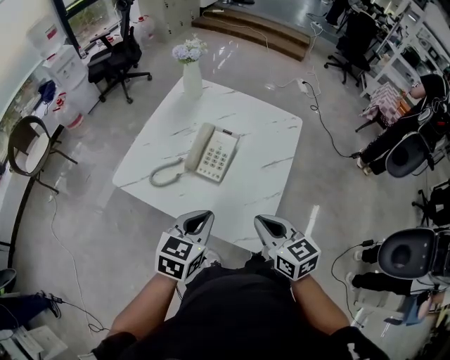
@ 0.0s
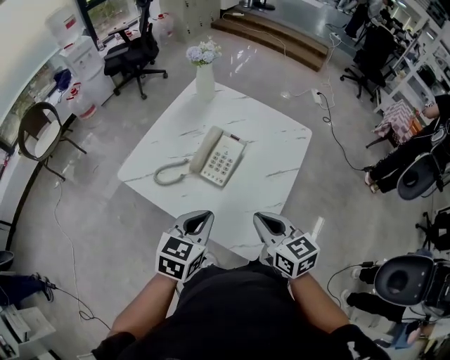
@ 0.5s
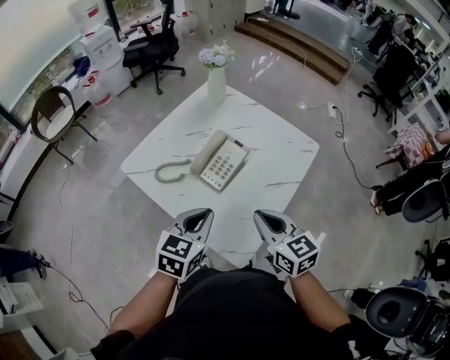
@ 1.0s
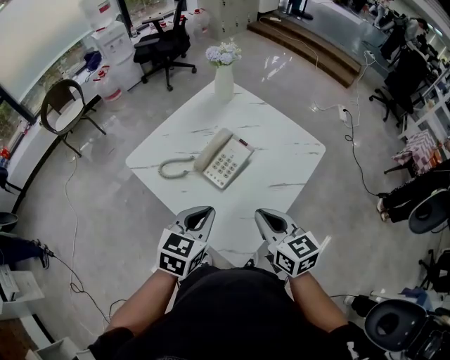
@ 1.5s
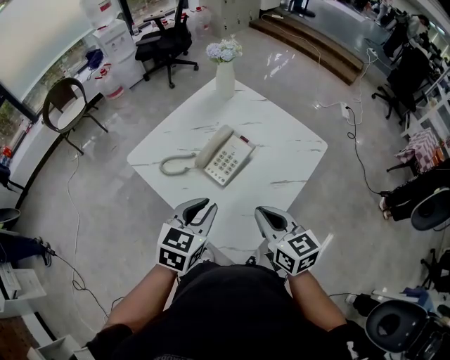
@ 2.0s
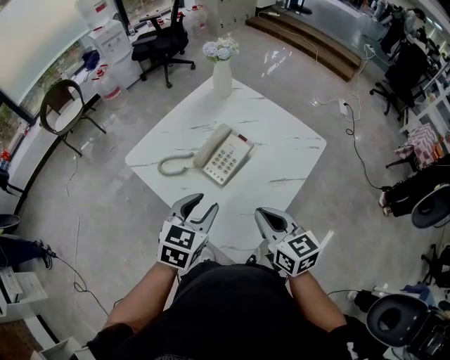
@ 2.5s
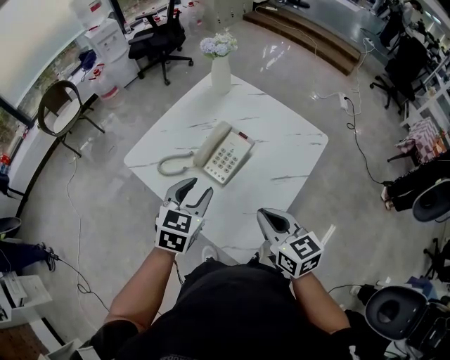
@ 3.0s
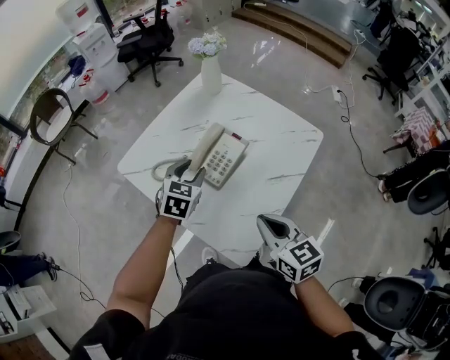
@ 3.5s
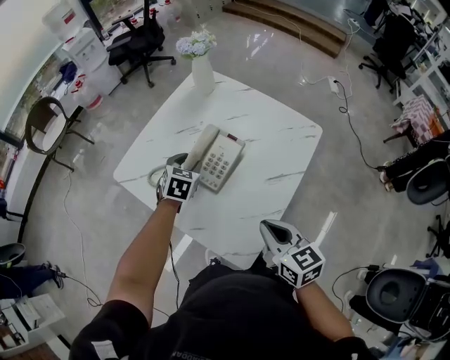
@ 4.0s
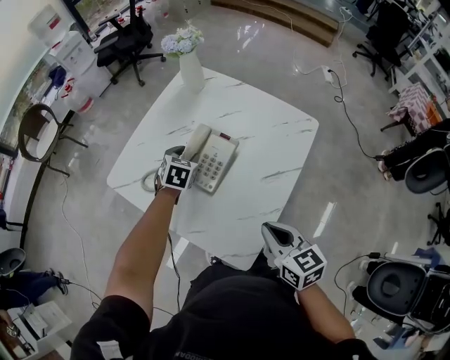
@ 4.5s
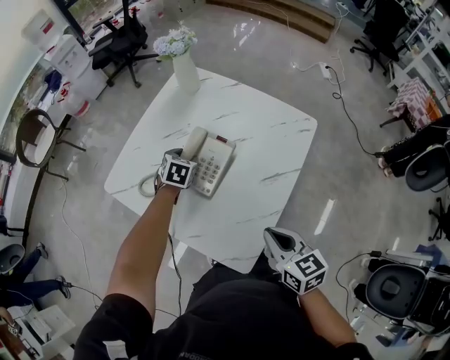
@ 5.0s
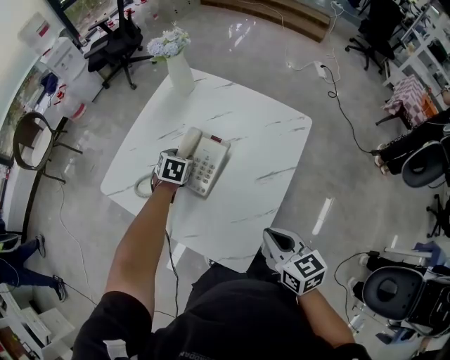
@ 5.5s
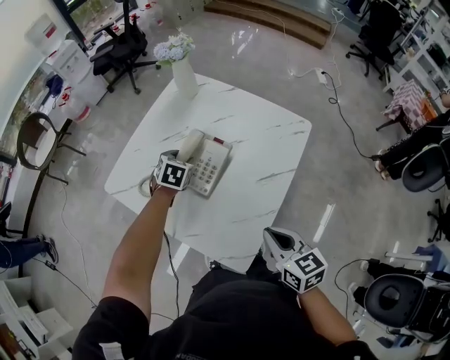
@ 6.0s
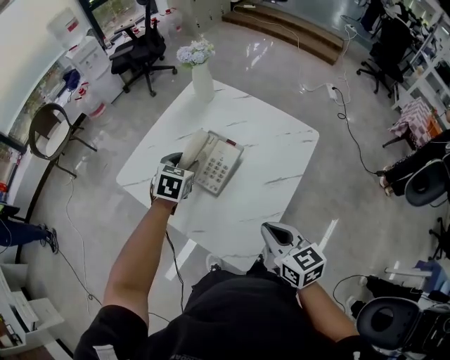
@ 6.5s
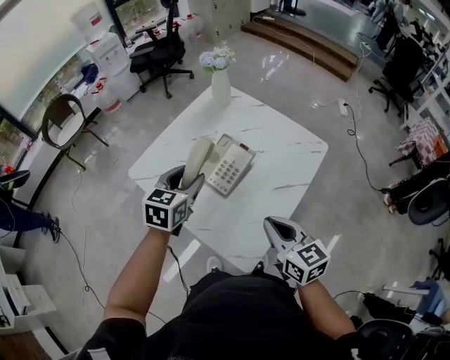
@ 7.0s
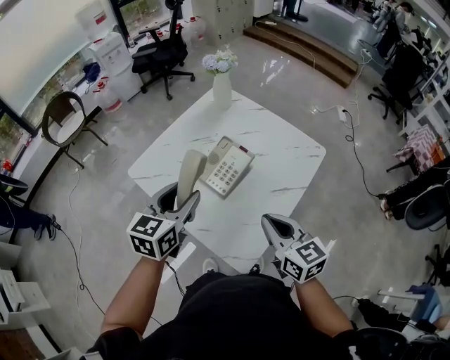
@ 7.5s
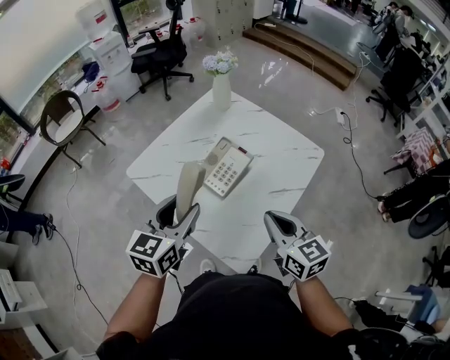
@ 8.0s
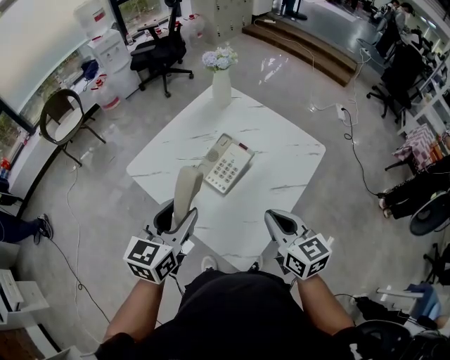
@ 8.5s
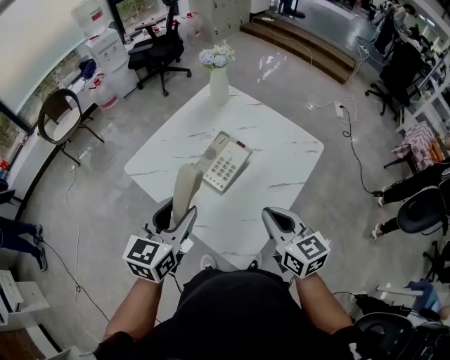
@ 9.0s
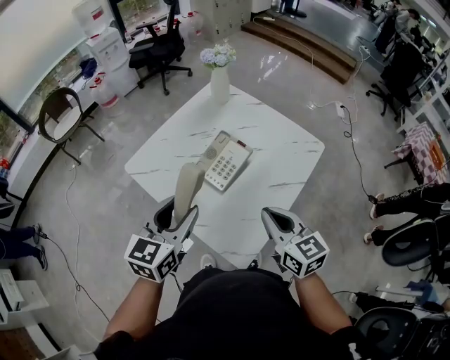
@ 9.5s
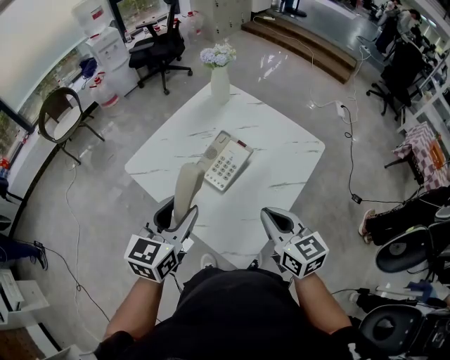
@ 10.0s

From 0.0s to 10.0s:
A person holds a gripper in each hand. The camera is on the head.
From 0.0s to 2.0s: The right gripper heads forward and to the right, covering roughly 10 cm. Meanwhile the left gripper shifts by about 5 cm.
From 2.0s to 4.0s: The left gripper travels forward and downward by approximately 25 cm, and opens.
From 6.0s to 8.0s: The right gripper is displaced upward by approximately 10 cm; the left gripper shifts some 30 cm backward and upward, and points its fingers some 40 degrees further upward.
From 8.0s to 10.0s: The grippers move only a little.

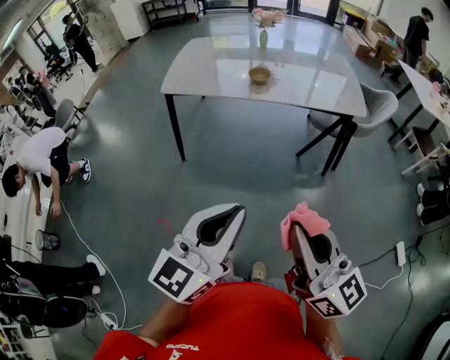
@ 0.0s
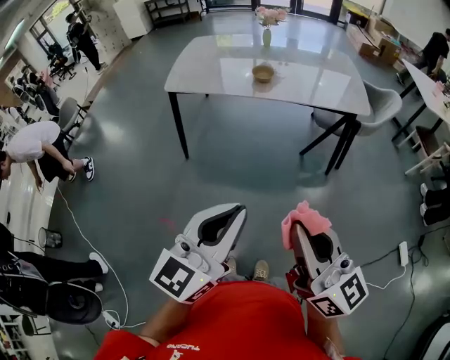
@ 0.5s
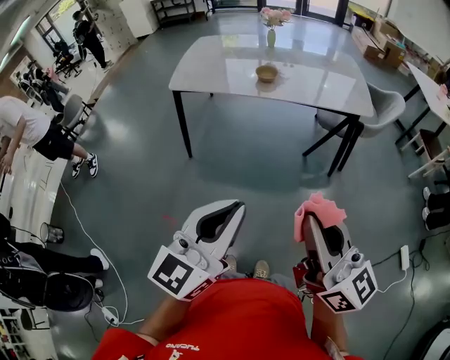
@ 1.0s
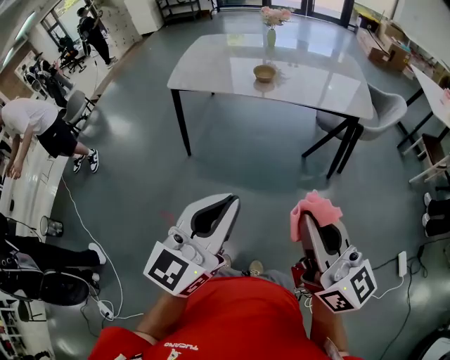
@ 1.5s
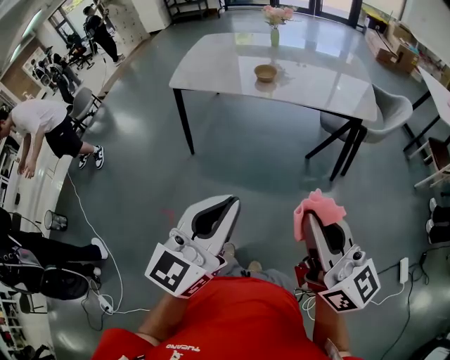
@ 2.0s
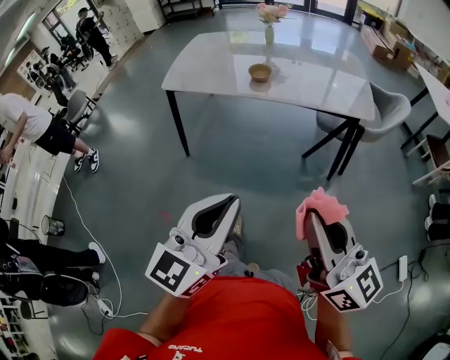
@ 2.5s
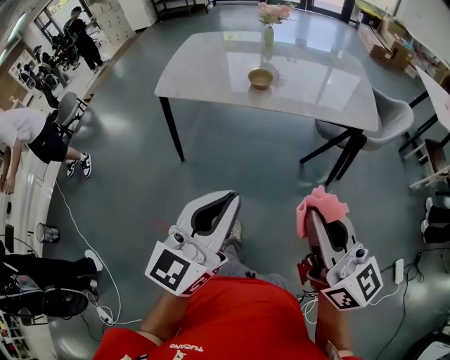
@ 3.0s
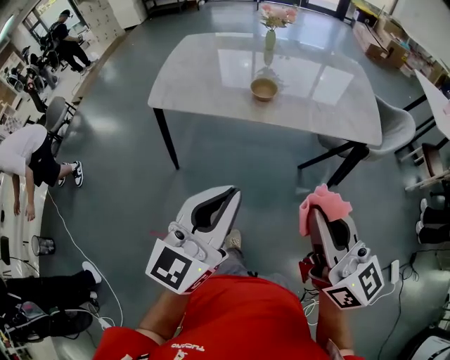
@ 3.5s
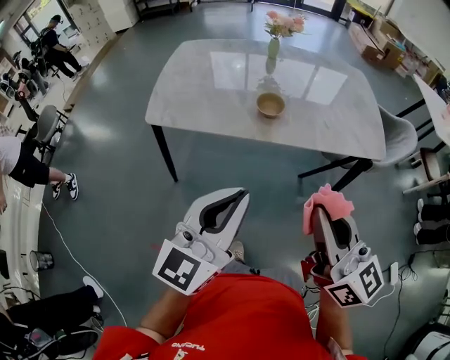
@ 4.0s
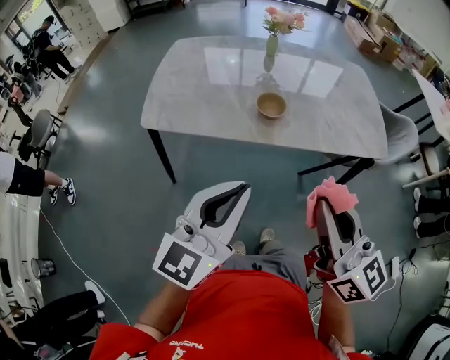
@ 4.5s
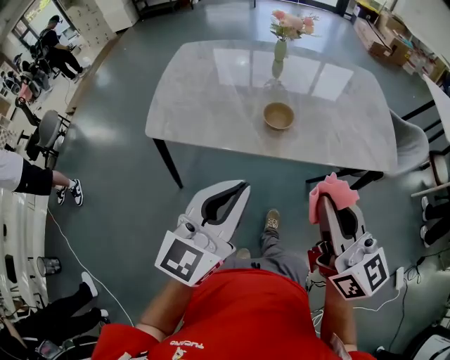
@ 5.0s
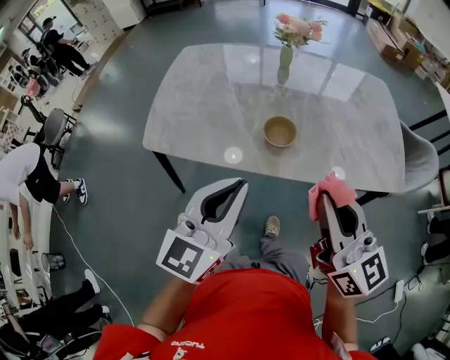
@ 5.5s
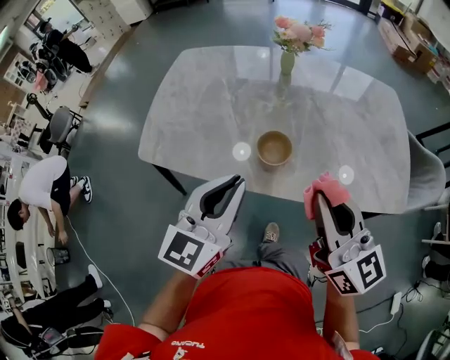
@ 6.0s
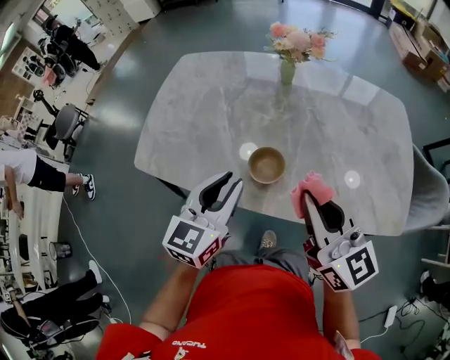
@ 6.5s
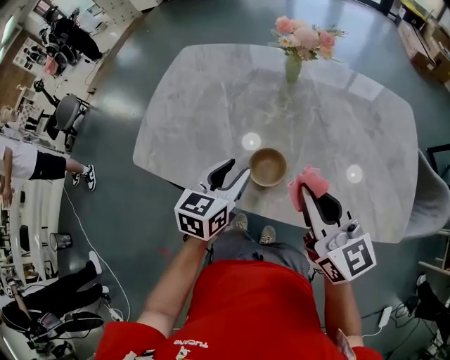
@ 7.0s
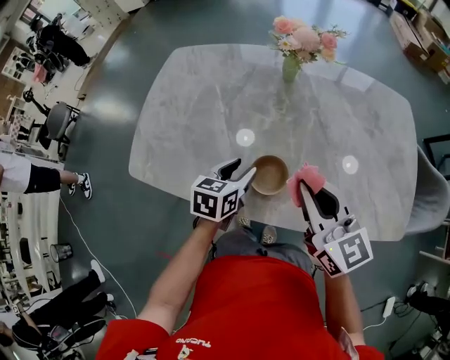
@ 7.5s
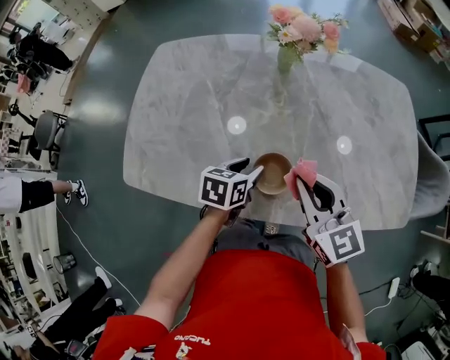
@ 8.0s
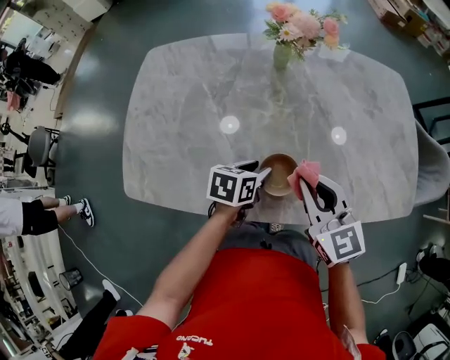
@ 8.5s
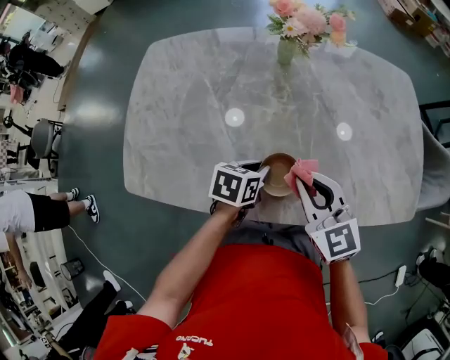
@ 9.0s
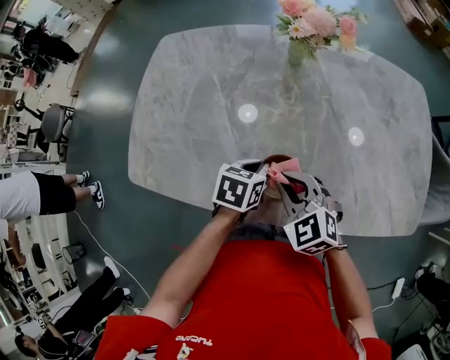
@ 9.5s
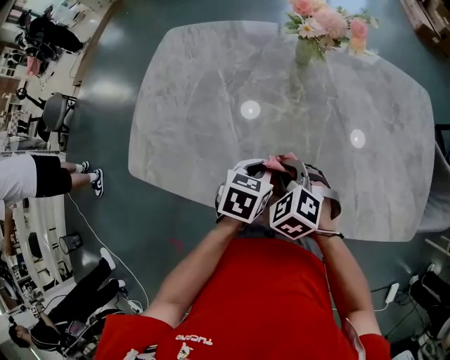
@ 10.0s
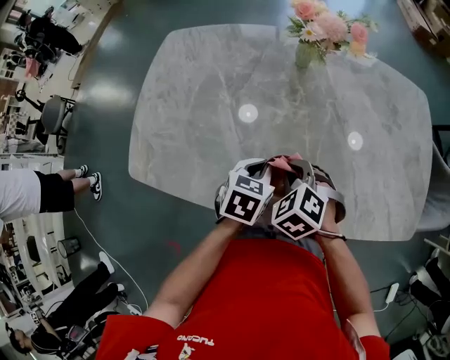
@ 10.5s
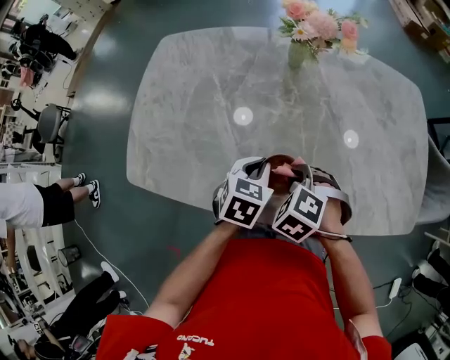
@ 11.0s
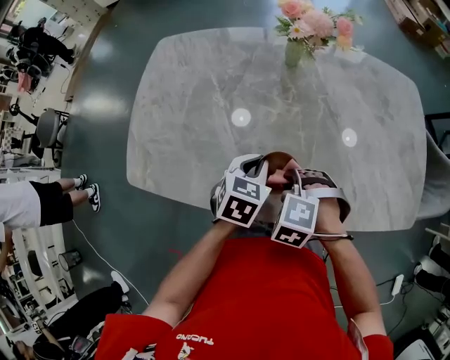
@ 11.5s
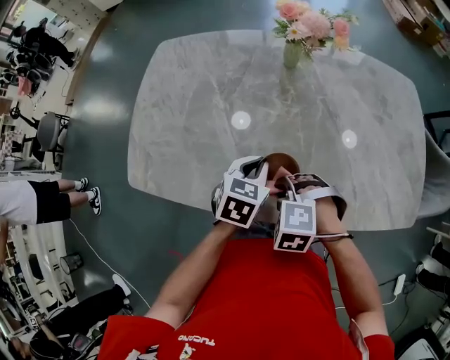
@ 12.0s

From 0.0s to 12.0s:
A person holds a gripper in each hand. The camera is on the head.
From 0.0s to 2.0s: The right gripper shifts some 10 cm to the right; the left gripper moves to the right, some 5 cm.
From 2.0s to 4.0s: The grippers both shift forward by about 30 cm.
From 4.0s to 6.0s: Both grippers move forward, some 25 cm.
From 6.0s to 8.0s: The right gripper goes about 20 cm forward and downward, and changes its angle by roughly 20 degrees. The left gripper goes approximately 30 cm downward and forward, angles its fingers downward, by about 40 degrees, and opens up.
From 8.0s to 10.0s: The left gripper closes its fingers; the right gripper is displaced downward and to the left by roughly 15 cm, and tilts its fingers approximately 40 degrees downward.
From 10.0s to 12.0s: The right gripper heads backward, covering roughly 5 cm, and rotates some 30 degrees.

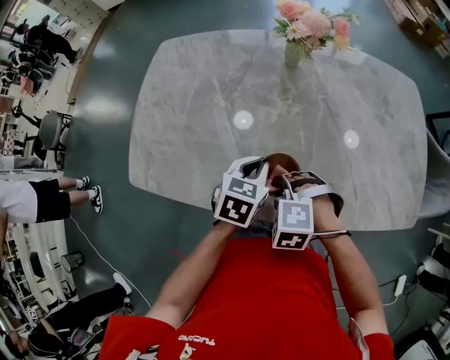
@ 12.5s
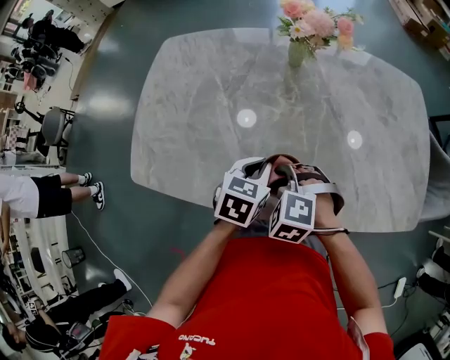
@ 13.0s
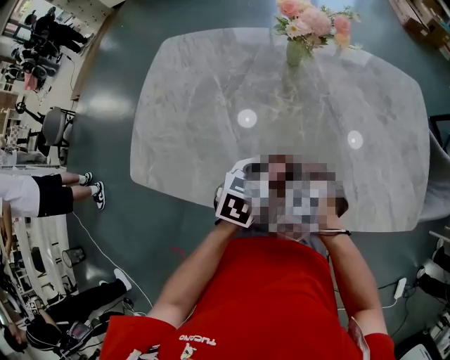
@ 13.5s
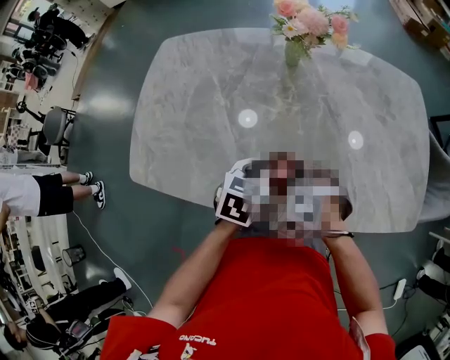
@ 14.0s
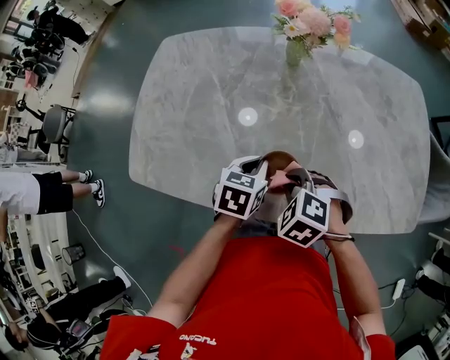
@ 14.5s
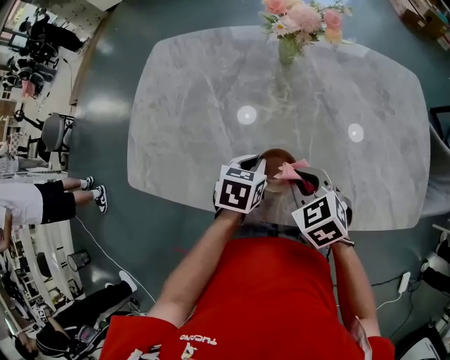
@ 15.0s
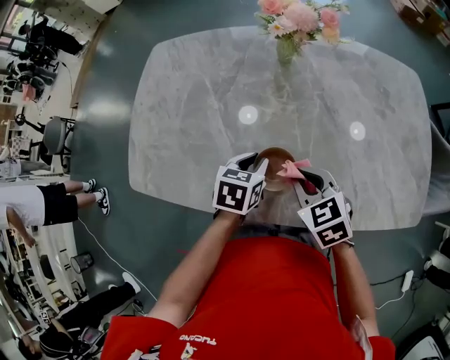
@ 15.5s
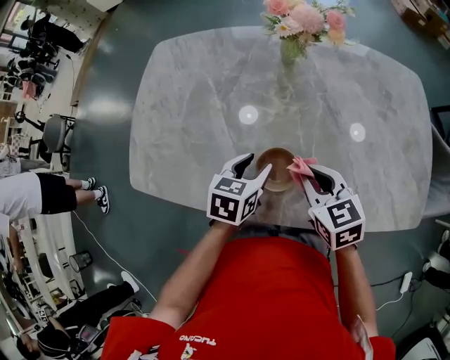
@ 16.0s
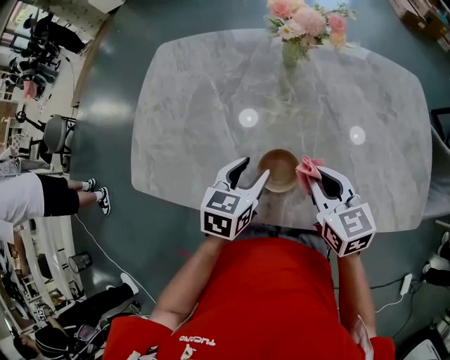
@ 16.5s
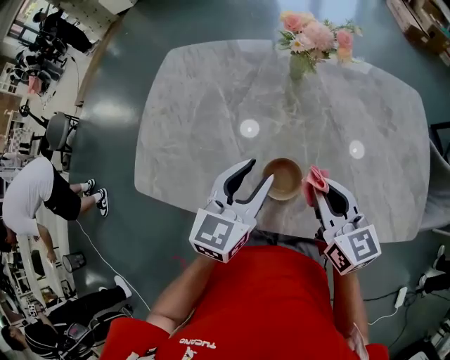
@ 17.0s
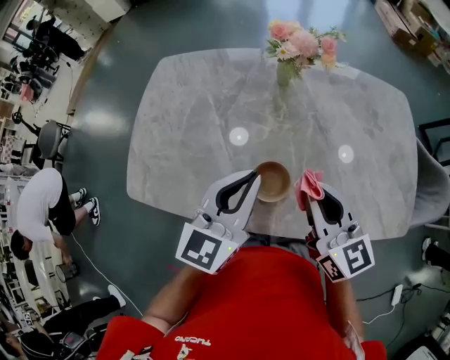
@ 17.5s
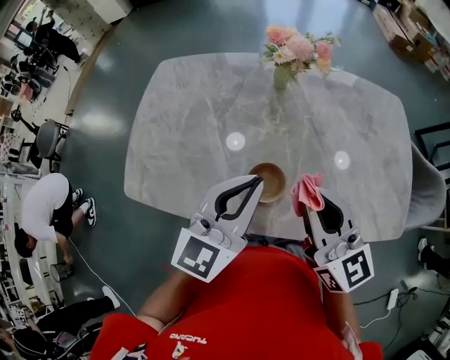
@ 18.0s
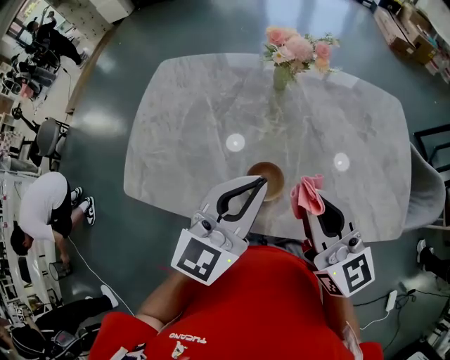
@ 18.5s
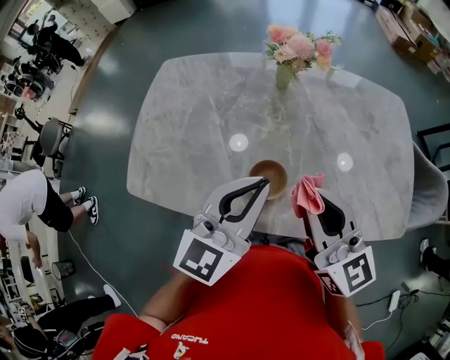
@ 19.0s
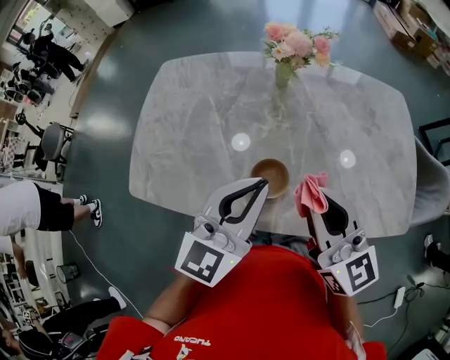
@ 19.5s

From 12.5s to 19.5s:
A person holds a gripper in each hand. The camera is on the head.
From 12.5s to 14.5s: The right gripper turns by some 20 degrees.
From 14.5s to 16.0s: The right gripper changes place by approximately 5 cm, and rolls clockwise, seen from behind, by approximately 40 degrees. The left gripper opens up.
From 16.0s to 17.5s: Both grippers travel together upward, roughly 15 cm. The right gripper points its fingers approximately 30 degrees further upward. Meanwhile the left gripper angles its fingers upward, by some 40 degrees, and closes its fingers.
From 17.5s to 19.5s: The right gripper heads upward, covering roughly 5 cm.
